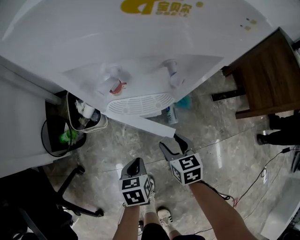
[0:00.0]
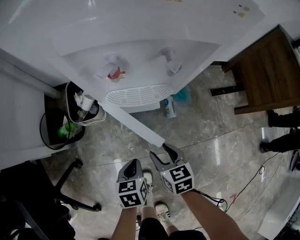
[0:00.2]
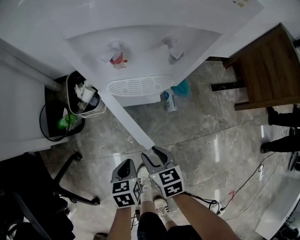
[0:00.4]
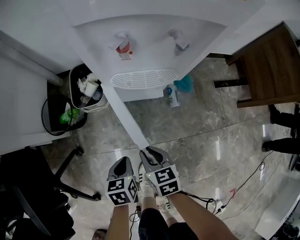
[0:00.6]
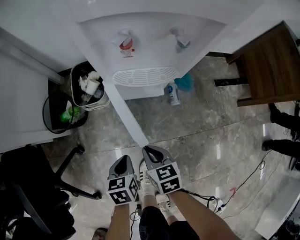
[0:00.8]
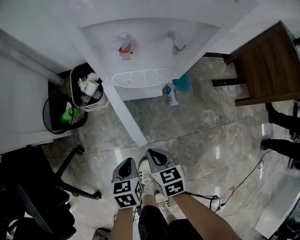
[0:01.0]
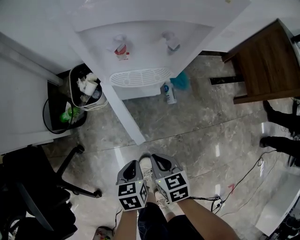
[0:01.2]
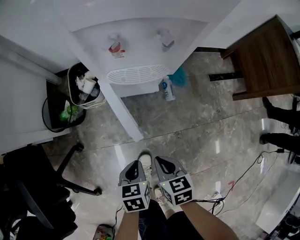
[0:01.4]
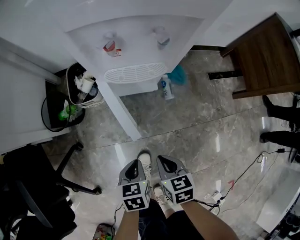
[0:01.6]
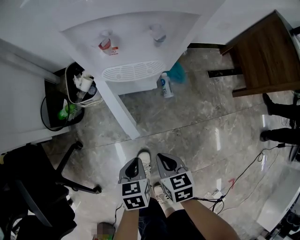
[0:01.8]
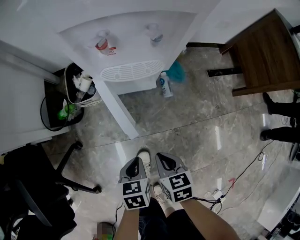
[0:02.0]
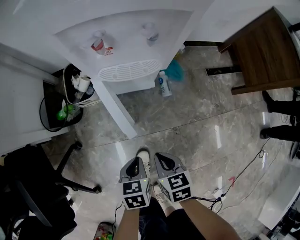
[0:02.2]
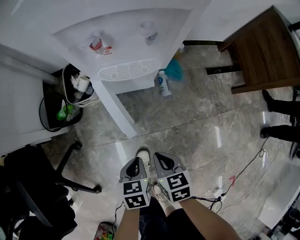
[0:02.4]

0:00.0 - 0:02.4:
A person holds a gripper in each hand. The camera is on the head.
0:00.0 - 0:01.2: The right gripper is displaced backward and to the left by some 20 cm, and closes. The left gripper moves backward, about 10 cm.
0:01.2 - 0:02.4: The grippers make only small movements.

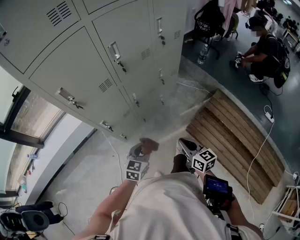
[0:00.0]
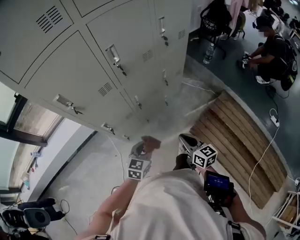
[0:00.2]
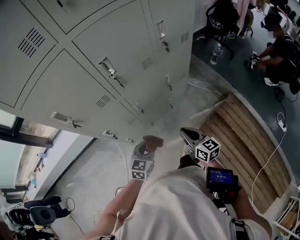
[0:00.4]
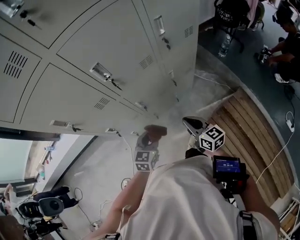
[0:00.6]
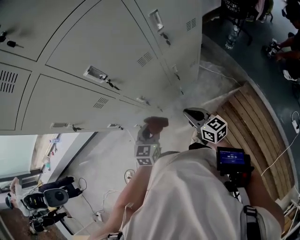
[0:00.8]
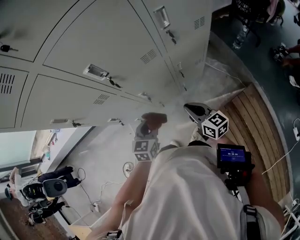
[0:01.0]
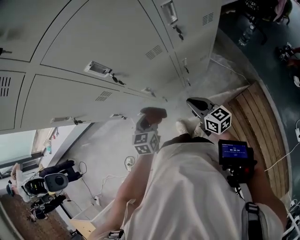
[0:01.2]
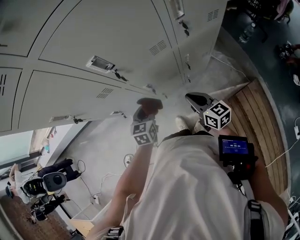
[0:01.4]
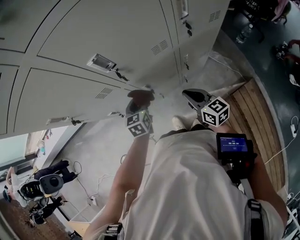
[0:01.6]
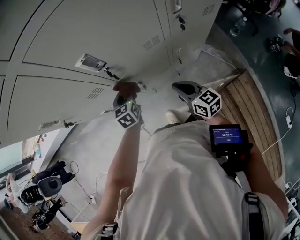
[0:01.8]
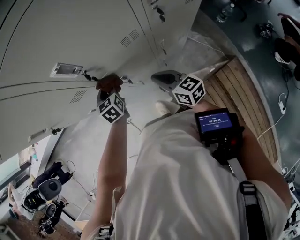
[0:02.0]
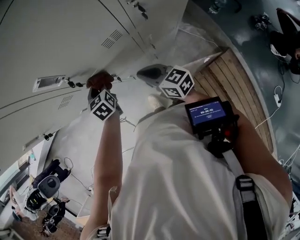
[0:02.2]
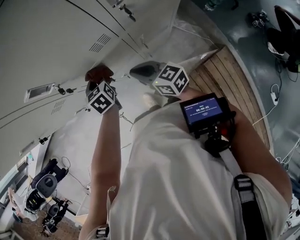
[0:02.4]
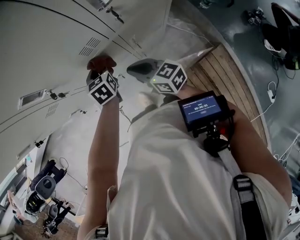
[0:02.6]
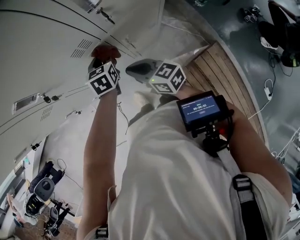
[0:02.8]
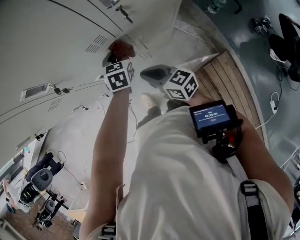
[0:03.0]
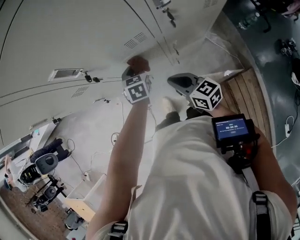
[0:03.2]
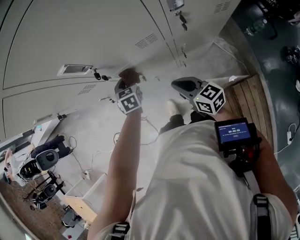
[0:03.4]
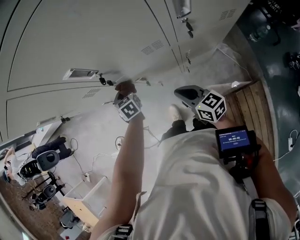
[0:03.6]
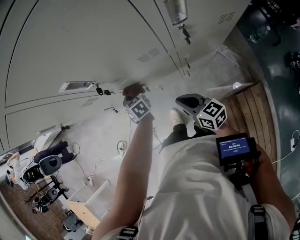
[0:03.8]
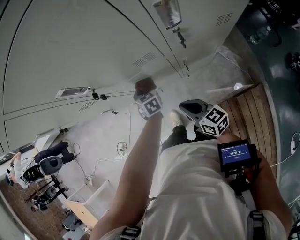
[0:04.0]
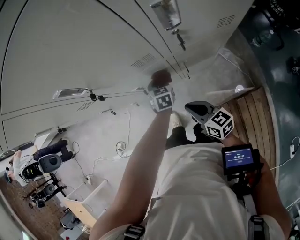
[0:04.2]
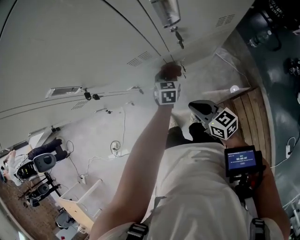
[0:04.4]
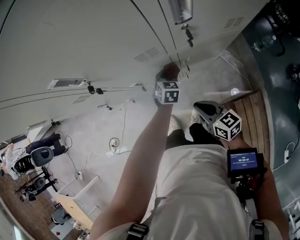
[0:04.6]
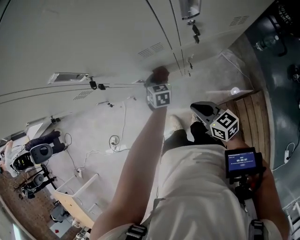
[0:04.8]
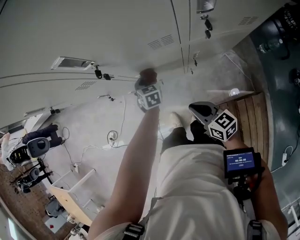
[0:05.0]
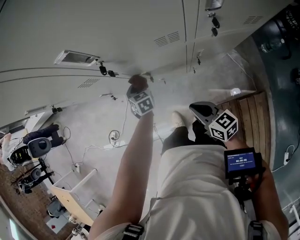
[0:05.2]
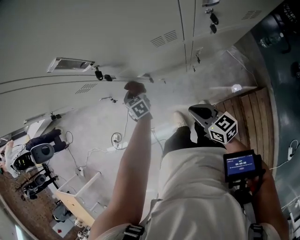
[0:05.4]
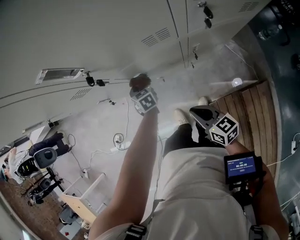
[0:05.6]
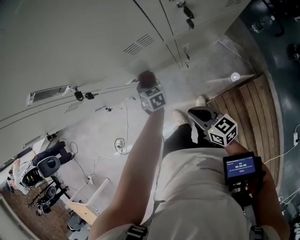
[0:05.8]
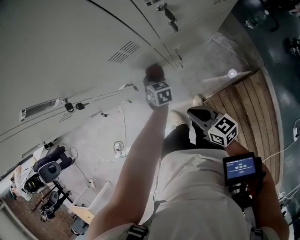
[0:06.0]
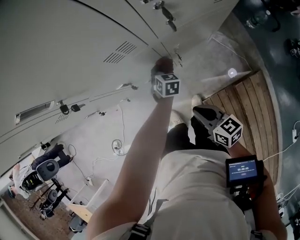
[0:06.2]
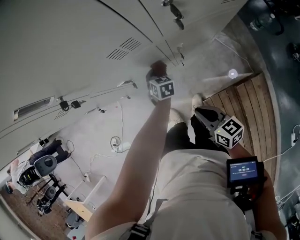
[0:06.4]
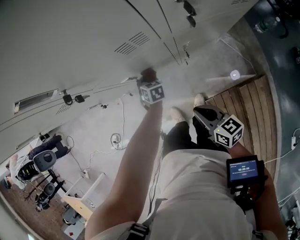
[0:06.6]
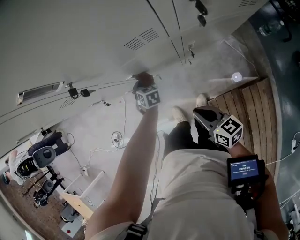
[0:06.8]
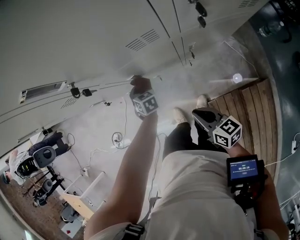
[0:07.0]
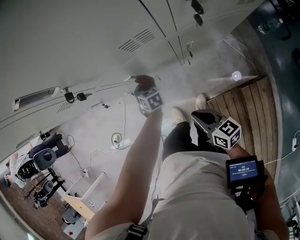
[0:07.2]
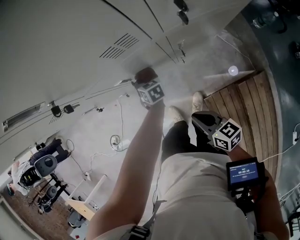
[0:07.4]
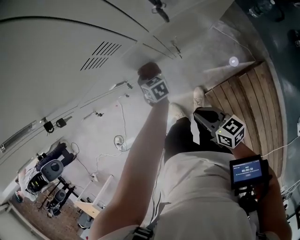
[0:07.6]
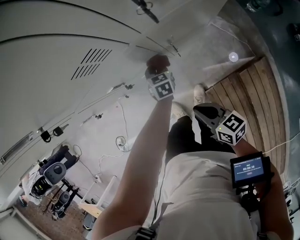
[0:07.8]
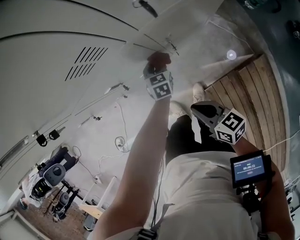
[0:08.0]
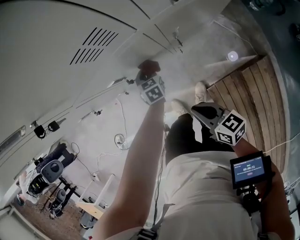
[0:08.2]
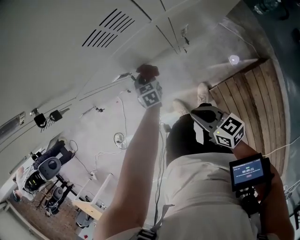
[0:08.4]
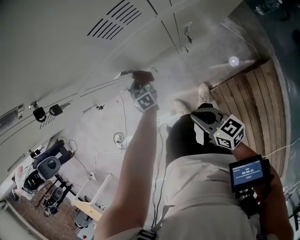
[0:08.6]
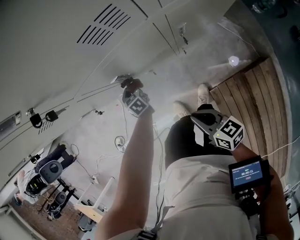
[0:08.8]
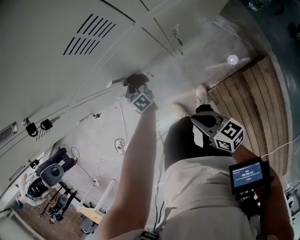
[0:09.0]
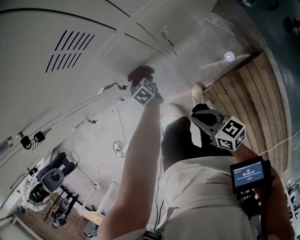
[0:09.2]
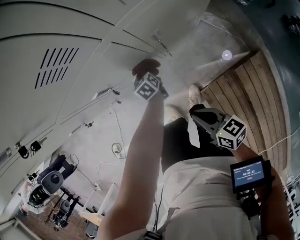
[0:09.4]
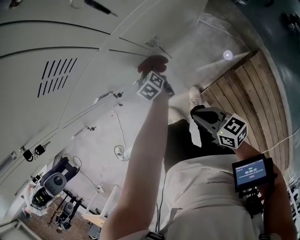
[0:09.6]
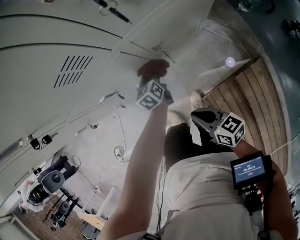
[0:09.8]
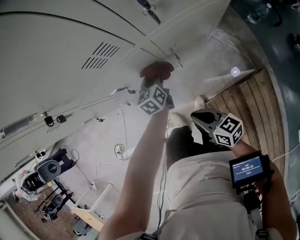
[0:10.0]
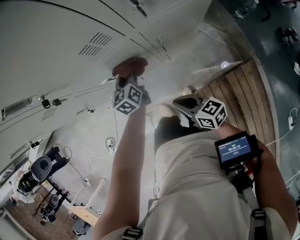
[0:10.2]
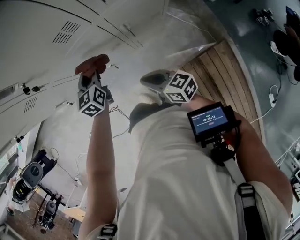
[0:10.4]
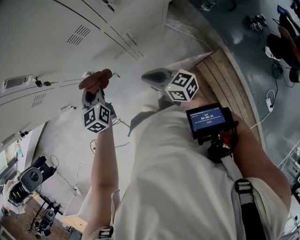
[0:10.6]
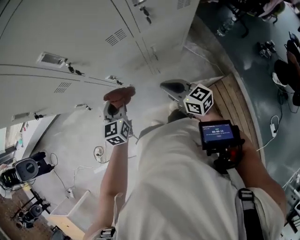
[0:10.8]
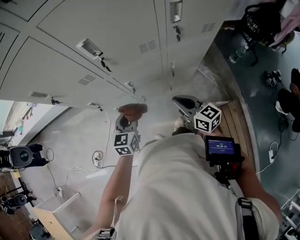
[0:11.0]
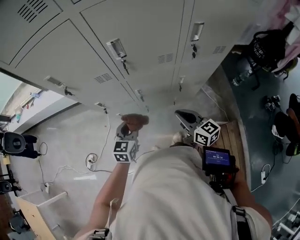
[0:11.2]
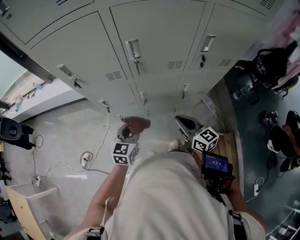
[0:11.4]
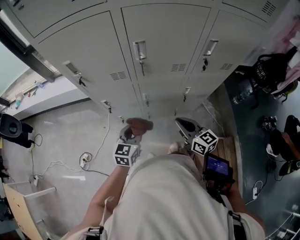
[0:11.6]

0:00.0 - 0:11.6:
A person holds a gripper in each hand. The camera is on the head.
0:00.0 - 0:01.4: The left gripper changes place by about 25 cm, and swivels about 40 degrees; the right gripper moves approximately 30 cm, and turns by about 20 degrees.
0:01.4 - 0:02.8: The right gripper goes approximately 5 cm forward, while the left gripper moves to the right and forward, roughly 20 cm.
0:02.8 - 0:04.4: The right gripper changes place by roughly 10 cm, while the left gripper heads downward, covering about 10 cm.
0:04.4 - 0:05.8: The right gripper moves to the left, some 5 cm; the left gripper goes some 15 cm to the left and downward, and swivels some 20 degrees.
0:05.8 - 0:07.2: The left gripper reaches roughly 15 cm to the right, then returns.
0:07.2 - 0:08.8: The right gripper shifts approximately 5 cm downward. Meanwhile the left gripper is displaced downward by about 10 cm, and goes to the right and returns, some 15 cm each way.
0:08.8 - 0:10.2: The left gripper heads upward and to the right, covering roughly 25 cm, and changes its angle by some 30 degrees. Meanwhile the right gripper shifts some 5 cm to the right.
0:10.2 - 0:11.6: The left gripper shifts approximately 25 cm backward, to the left and upward; the right gripper moves upward, some 15 cm, and turns by approximately 20 degrees.

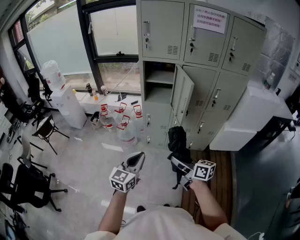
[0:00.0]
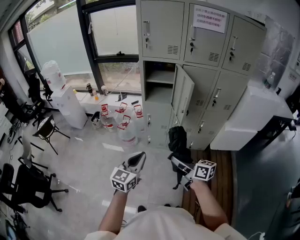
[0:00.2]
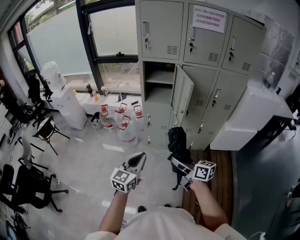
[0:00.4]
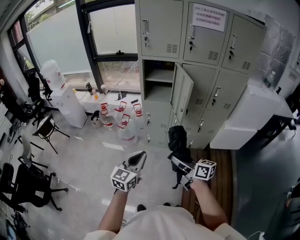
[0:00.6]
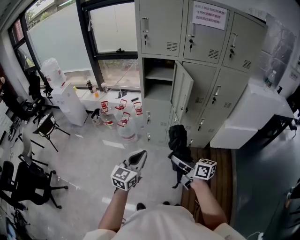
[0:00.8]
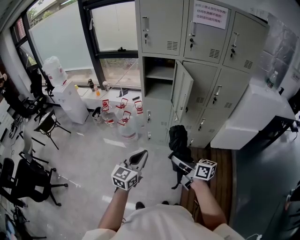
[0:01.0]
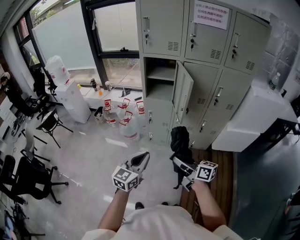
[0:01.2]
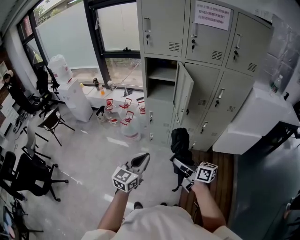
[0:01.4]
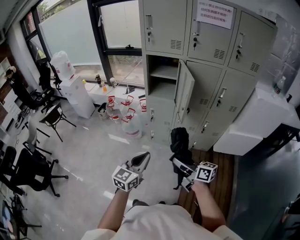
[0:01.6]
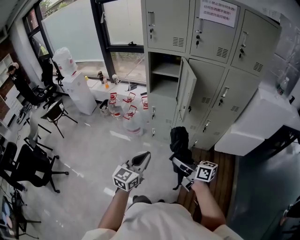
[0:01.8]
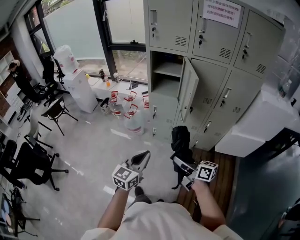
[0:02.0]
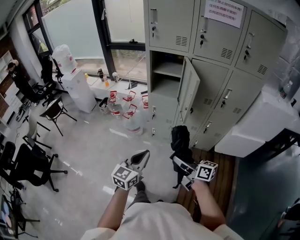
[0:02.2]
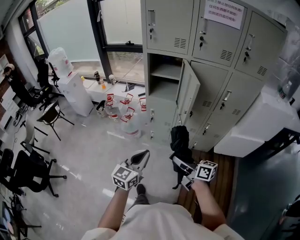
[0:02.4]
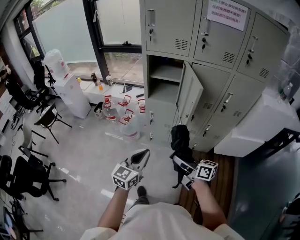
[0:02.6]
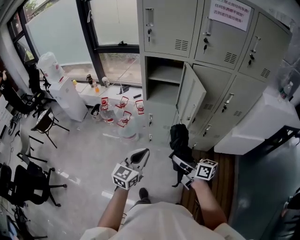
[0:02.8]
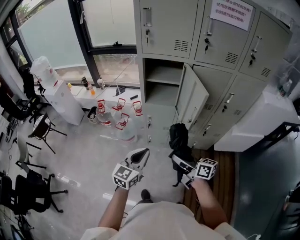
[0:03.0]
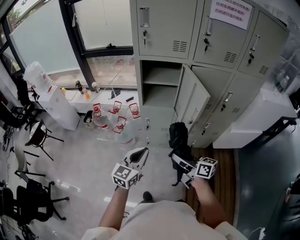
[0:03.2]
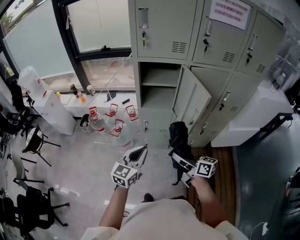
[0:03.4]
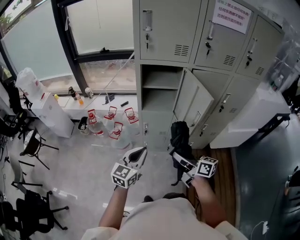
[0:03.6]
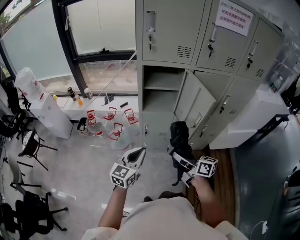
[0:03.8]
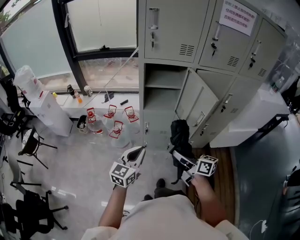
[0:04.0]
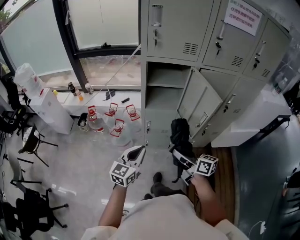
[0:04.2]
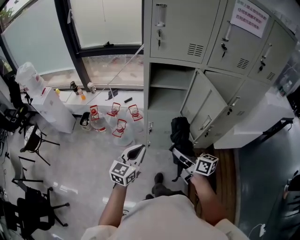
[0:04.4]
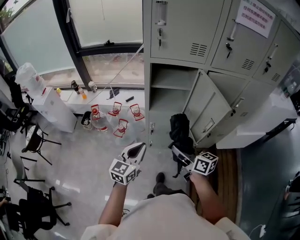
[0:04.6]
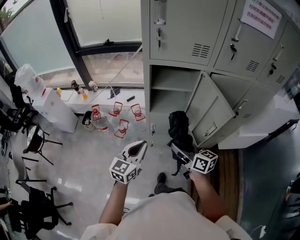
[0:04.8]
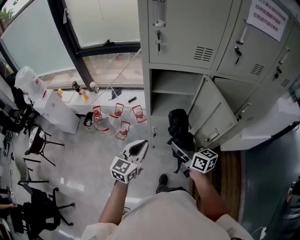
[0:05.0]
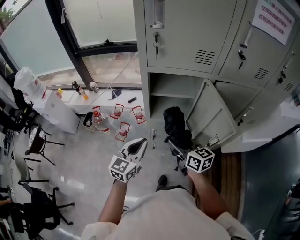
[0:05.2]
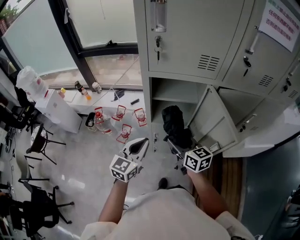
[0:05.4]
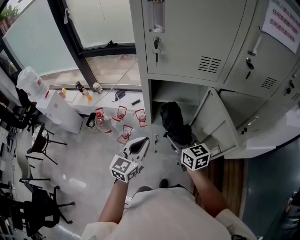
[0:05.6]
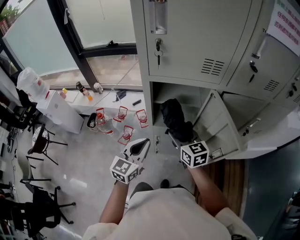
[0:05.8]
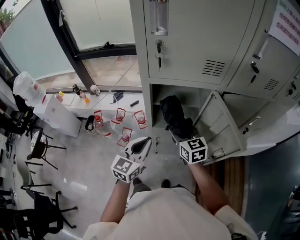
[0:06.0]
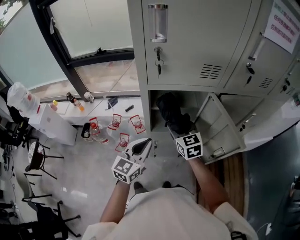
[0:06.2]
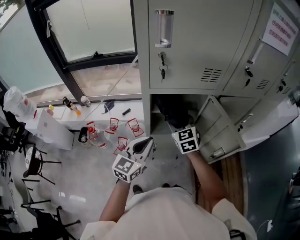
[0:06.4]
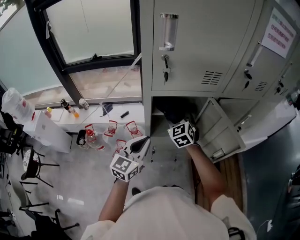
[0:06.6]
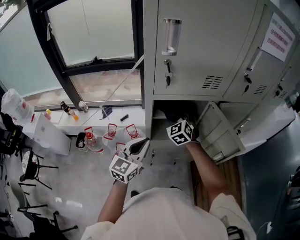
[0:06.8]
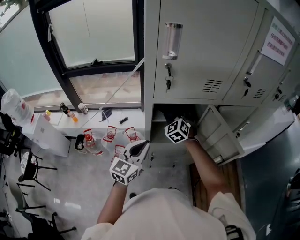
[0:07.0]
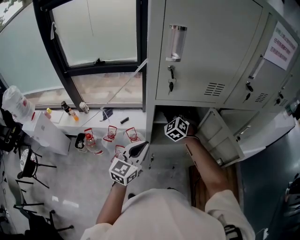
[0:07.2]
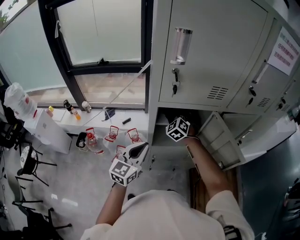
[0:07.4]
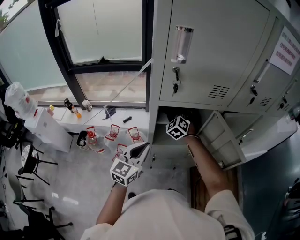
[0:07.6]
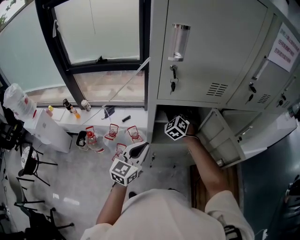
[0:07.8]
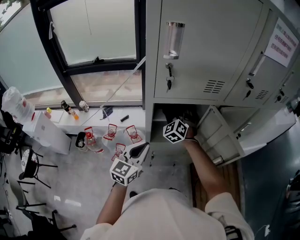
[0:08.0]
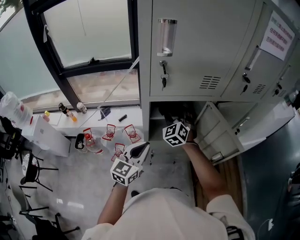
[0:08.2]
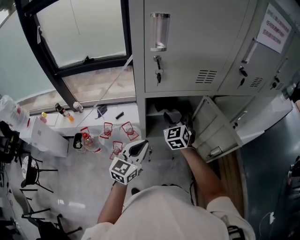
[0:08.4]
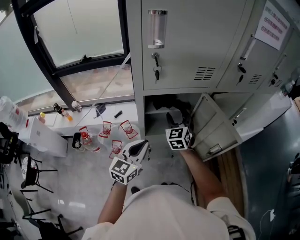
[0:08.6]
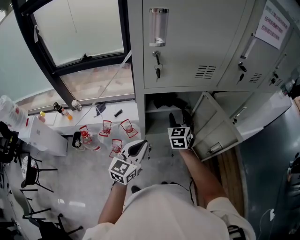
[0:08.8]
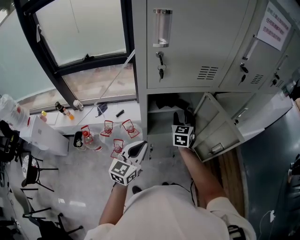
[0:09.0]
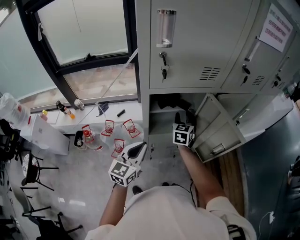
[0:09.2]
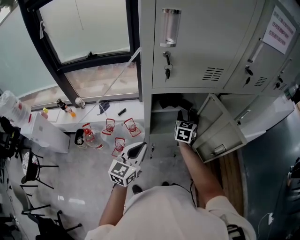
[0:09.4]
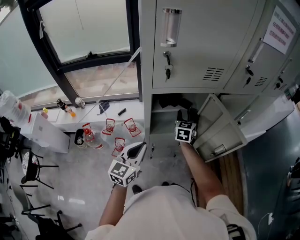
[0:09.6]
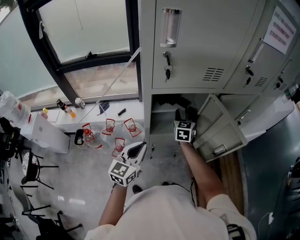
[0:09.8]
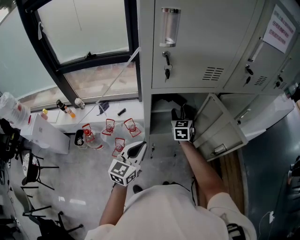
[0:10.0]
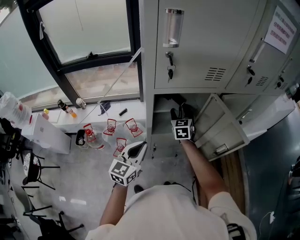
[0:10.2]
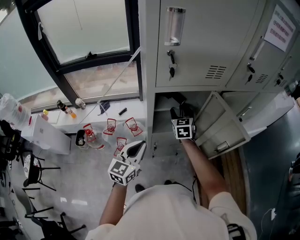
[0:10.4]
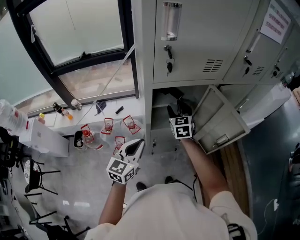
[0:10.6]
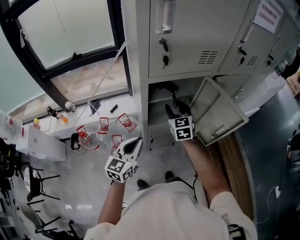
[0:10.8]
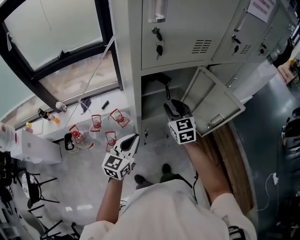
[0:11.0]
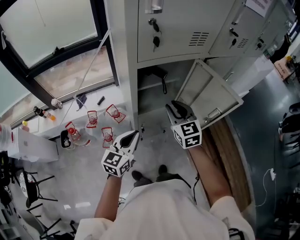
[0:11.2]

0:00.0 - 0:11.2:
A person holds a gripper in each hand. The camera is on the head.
0:00.0 - 0:01.6: The two grippers go about 5 cm to the right.
0:01.6 - 0:03.2: The grippers both shift forward by approximately 20 cm.
0:03.2 - 0:04.8: The right gripper heads forward, covering some 15 cm; the left gripper shifts approximately 15 cm forward and to the left.
0:04.8 - 0:06.4: The right gripper travels forward by some 25 cm, and rotates around the line of its fingers by approximately 50 degrees, counterclockwise from behind. The left gripper shifts approximately 15 cm forward.
0:06.4 - 0:08.0: The right gripper heads forward, covering approximately 10 cm, and swivels approximately 30 degrees.
0:08.0 - 0:09.6: The right gripper is displaced to the right by approximately 10 cm, and rotates around the line of its fingers by approximately 50 degrees, clockwise from behind.
0:09.6 - 0:11.2: The right gripper travels backward by roughly 15 cm, and closes its fingers.
